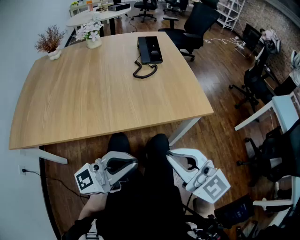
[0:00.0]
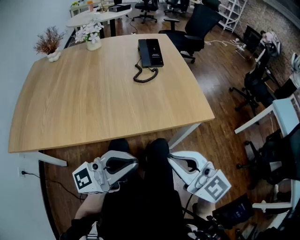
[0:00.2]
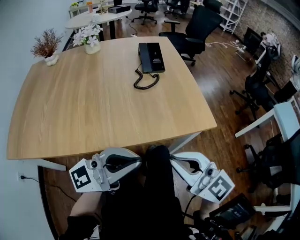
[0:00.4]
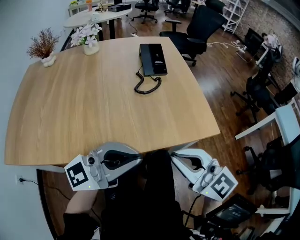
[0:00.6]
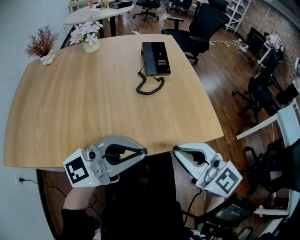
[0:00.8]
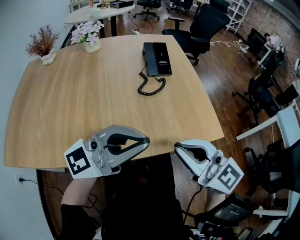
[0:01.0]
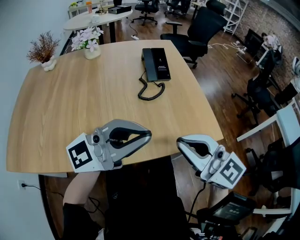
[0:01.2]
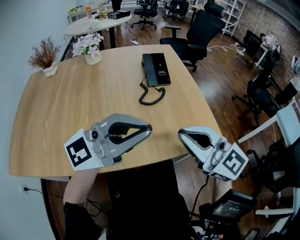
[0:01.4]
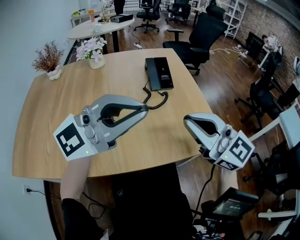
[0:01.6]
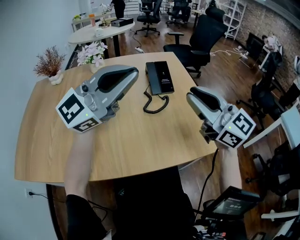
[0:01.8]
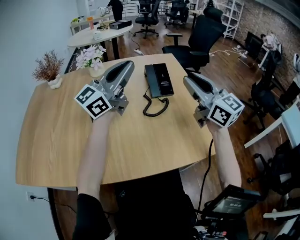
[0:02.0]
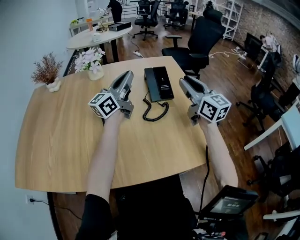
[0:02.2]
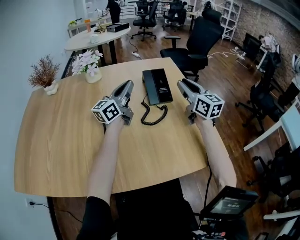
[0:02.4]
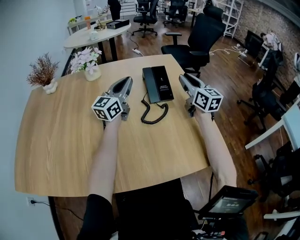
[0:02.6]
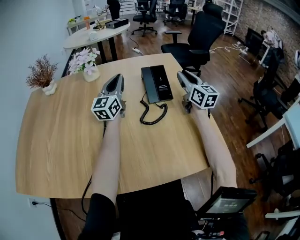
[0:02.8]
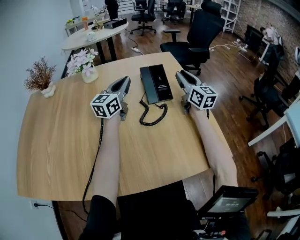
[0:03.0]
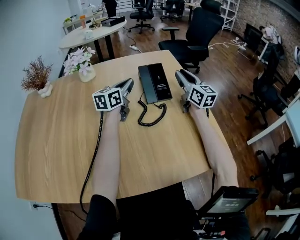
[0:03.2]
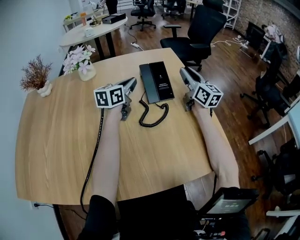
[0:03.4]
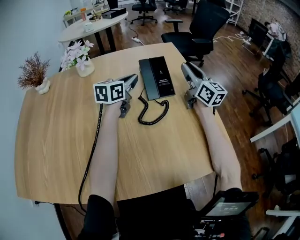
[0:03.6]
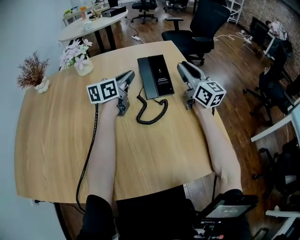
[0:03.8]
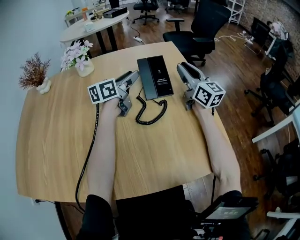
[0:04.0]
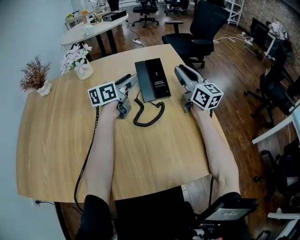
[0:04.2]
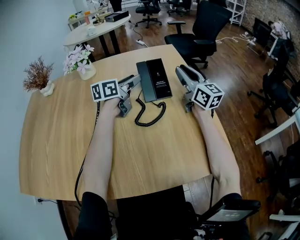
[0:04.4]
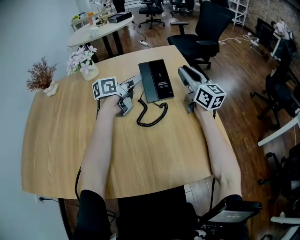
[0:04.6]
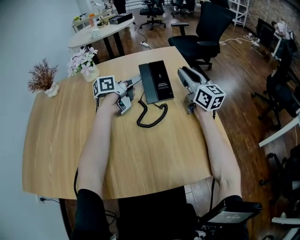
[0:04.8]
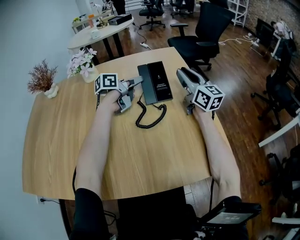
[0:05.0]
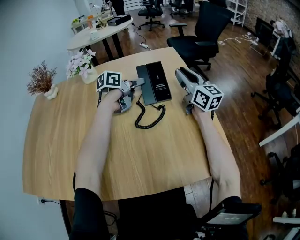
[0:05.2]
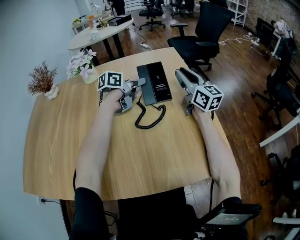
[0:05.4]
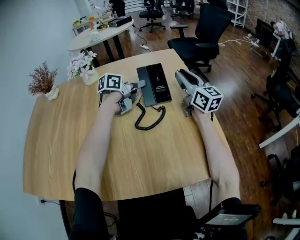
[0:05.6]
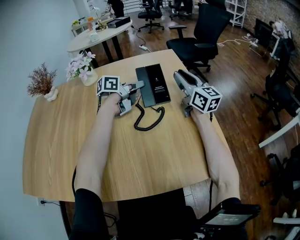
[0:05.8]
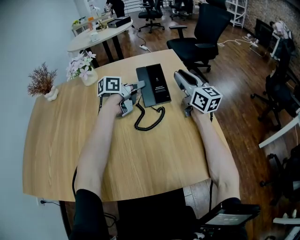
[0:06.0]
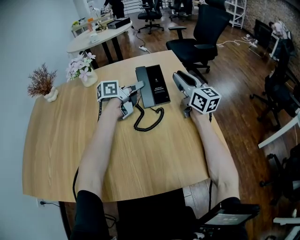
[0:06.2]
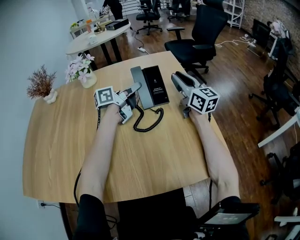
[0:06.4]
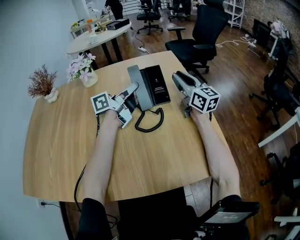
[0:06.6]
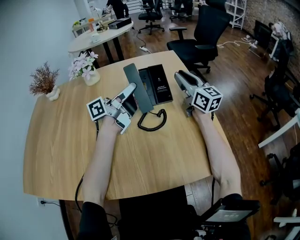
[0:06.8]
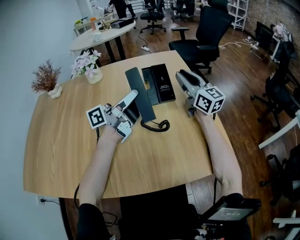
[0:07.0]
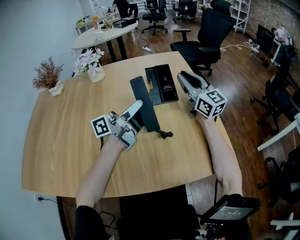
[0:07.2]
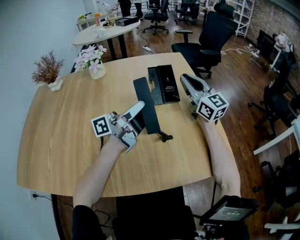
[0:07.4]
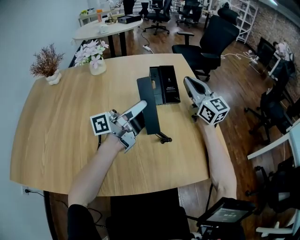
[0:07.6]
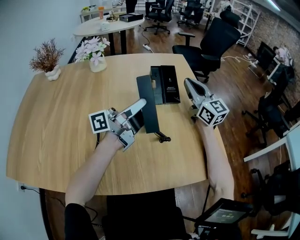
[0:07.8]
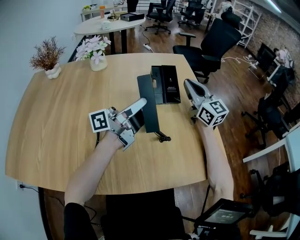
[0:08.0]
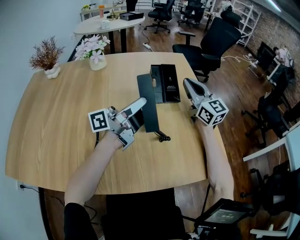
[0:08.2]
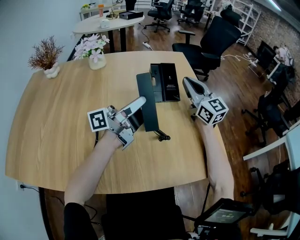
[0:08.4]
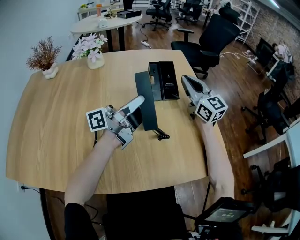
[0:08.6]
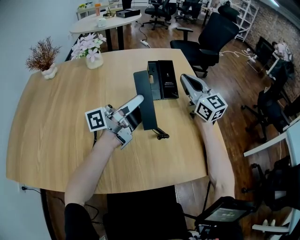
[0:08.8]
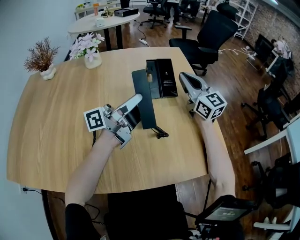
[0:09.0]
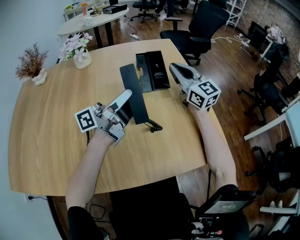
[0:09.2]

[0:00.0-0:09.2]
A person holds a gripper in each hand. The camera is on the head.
0.0 to 1.6 s: The right gripper moves approximately 25 cm. The left gripper moves roughly 25 cm, and rotates some 40 degrees.
1.6 to 3.0 s: The left gripper moves forward and downward, some 40 cm, and changes its angle by approximately 50 degrees. The right gripper heads forward, covering about 35 cm, swivels some 30 degrees, and opens up.
3.0 to 4.6 s: The left gripper goes roughly 5 cm to the right and downward, turns by roughly 40 degrees, and opens.
4.6 to 6.2 s: The left gripper closes up.
6.2 to 7.6 s: The left gripper goes about 20 cm backward, and angles its fingers upward, by about 40 degrees, while the right gripper is displaced backward by roughly 5 cm.
7.6 to 9.2 s: The grippers move only a little.

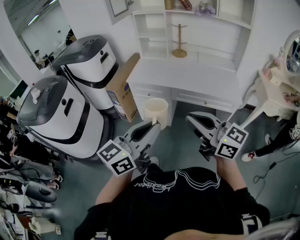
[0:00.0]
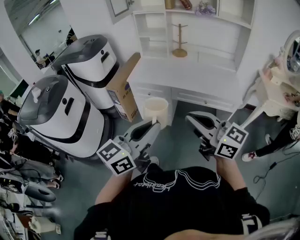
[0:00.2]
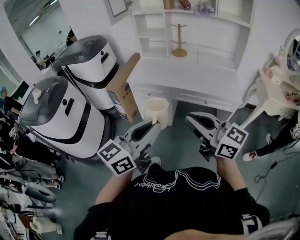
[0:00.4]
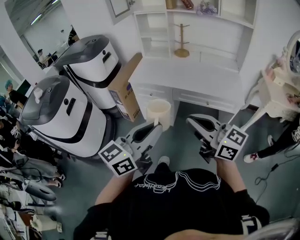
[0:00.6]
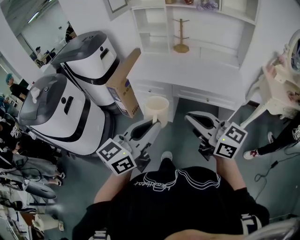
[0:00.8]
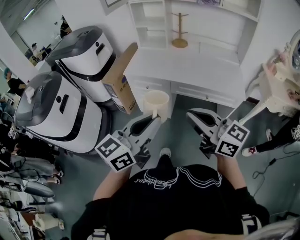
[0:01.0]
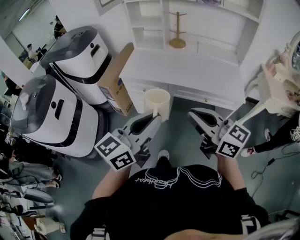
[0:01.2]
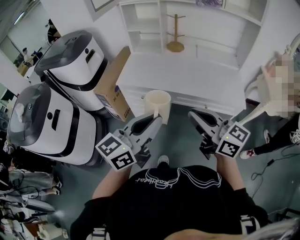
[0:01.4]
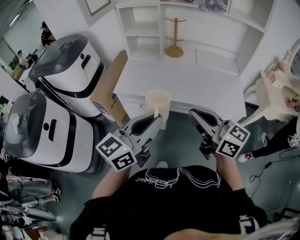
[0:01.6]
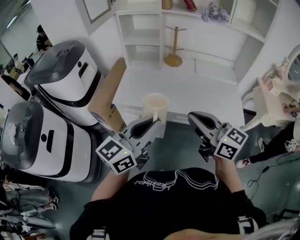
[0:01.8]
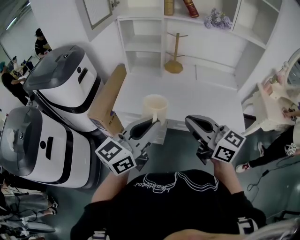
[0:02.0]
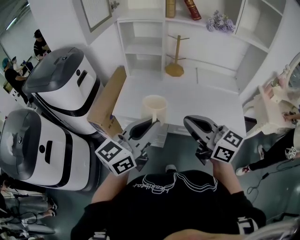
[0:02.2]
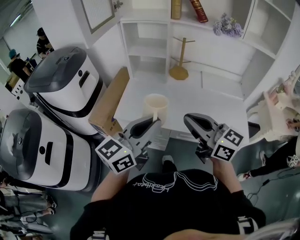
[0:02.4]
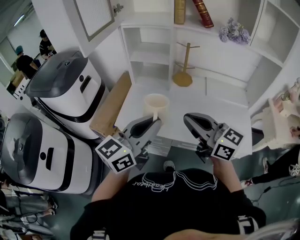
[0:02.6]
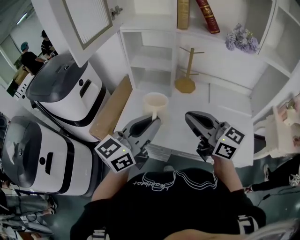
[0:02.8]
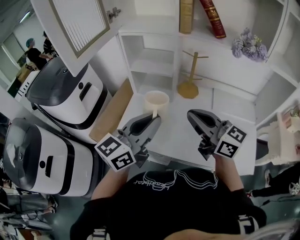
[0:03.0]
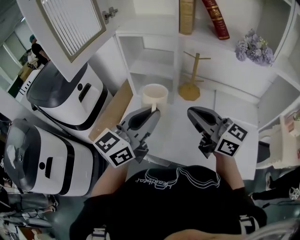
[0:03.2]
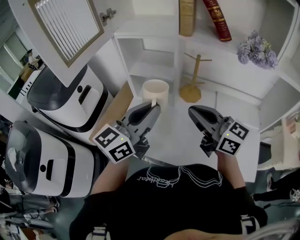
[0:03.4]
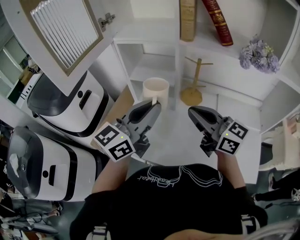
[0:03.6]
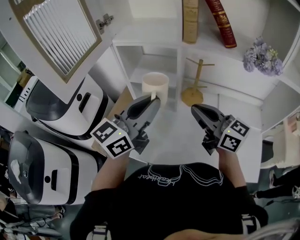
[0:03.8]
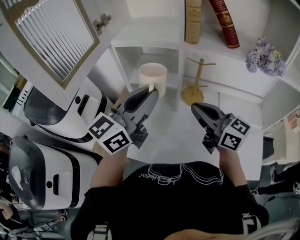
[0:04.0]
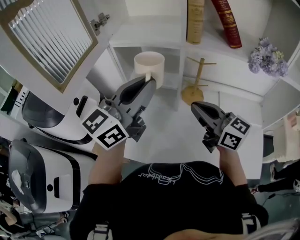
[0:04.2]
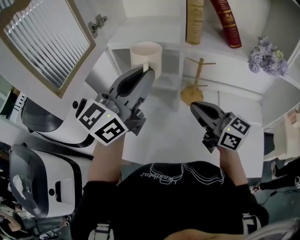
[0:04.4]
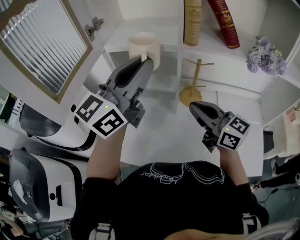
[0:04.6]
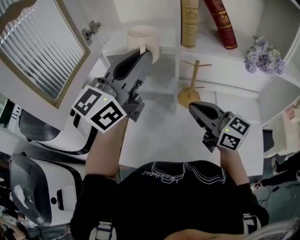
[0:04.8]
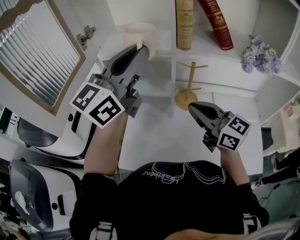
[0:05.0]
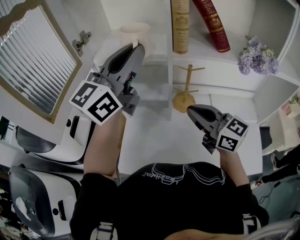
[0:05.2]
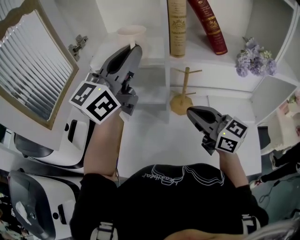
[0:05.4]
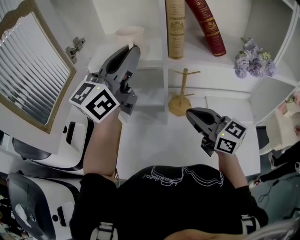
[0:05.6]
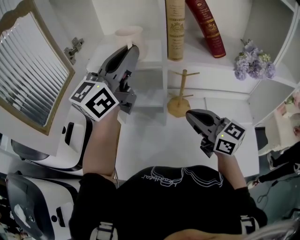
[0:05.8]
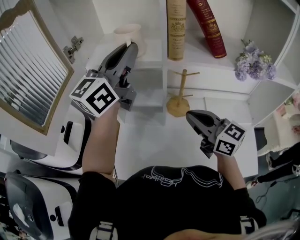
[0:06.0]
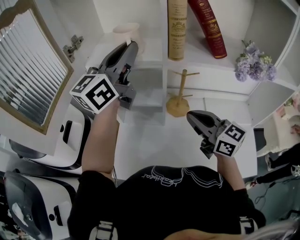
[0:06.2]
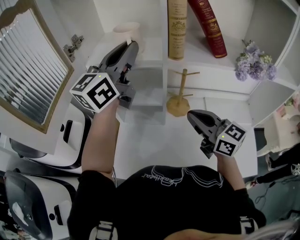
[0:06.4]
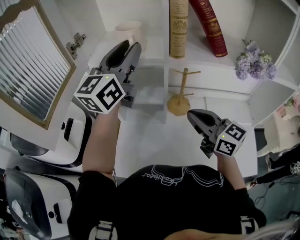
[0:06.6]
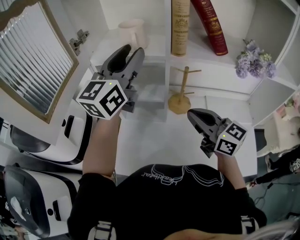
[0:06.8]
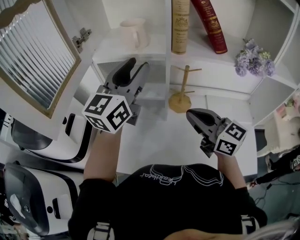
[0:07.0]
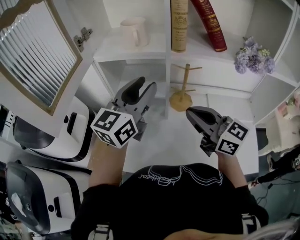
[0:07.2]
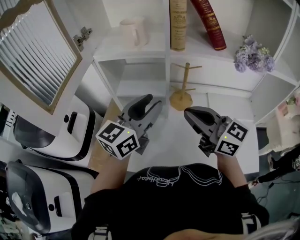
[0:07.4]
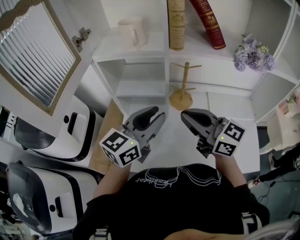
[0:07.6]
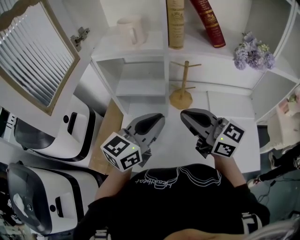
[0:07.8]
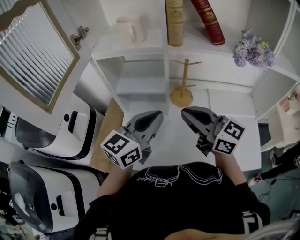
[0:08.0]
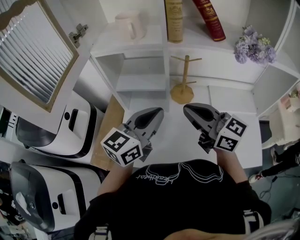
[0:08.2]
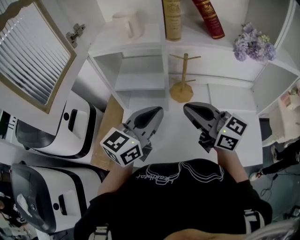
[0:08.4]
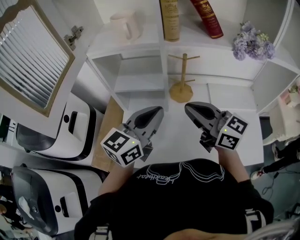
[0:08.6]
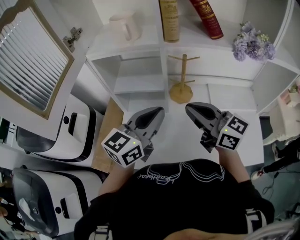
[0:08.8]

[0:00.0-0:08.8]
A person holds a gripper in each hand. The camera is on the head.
0.0 to 1.4 s: The two grippers go some 15 cm forward.
1.4 to 3.0 s: The two grippers go approximately 40 cm forward.
3.0 to 4.4 s: The right gripper shifts some 15 cm forward, while the left gripper travels forward and upward by about 25 cm.
4.4 to 5.8 s: The left gripper travels forward and upward by about 15 cm.
5.8 to 7.4 s: The right gripper ends up about 5 cm from where it was, while the left gripper shifts approximately 20 cm downward and backward, and opens up.
7.4 to 8.8 s: The left gripper changes place by about 5 cm, and closes.

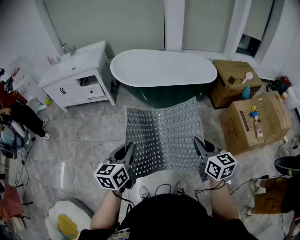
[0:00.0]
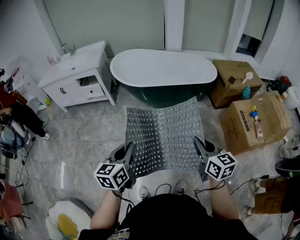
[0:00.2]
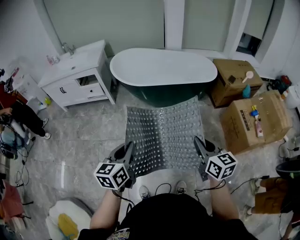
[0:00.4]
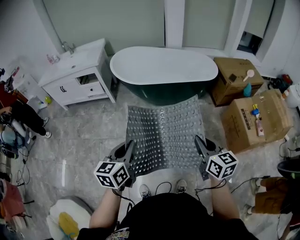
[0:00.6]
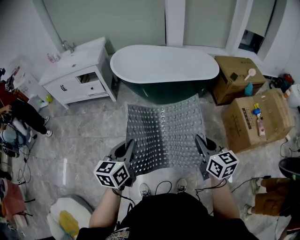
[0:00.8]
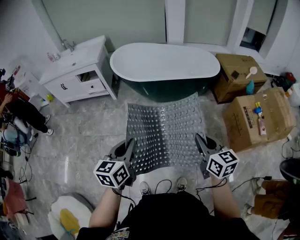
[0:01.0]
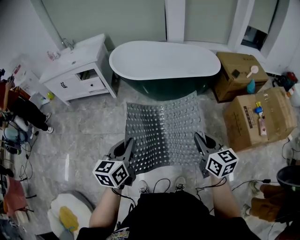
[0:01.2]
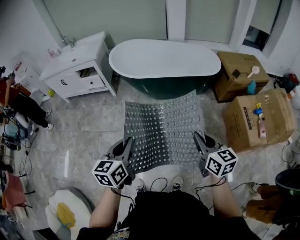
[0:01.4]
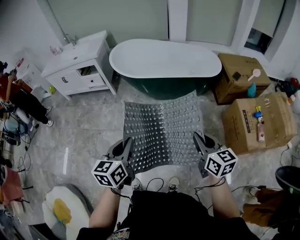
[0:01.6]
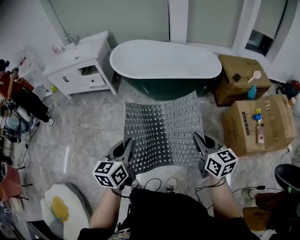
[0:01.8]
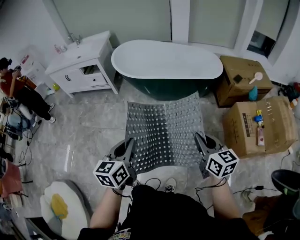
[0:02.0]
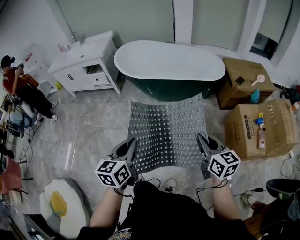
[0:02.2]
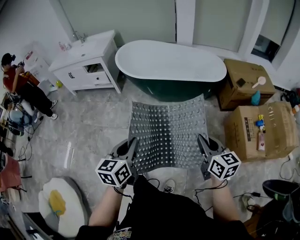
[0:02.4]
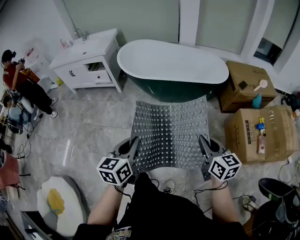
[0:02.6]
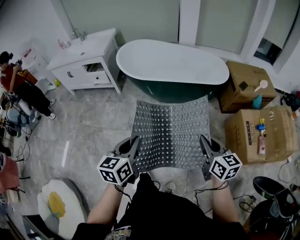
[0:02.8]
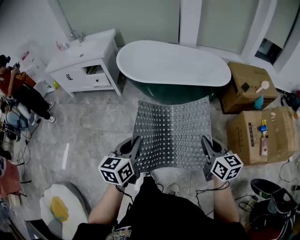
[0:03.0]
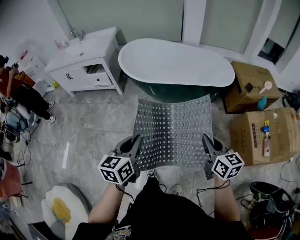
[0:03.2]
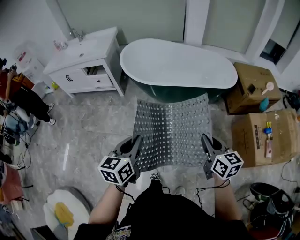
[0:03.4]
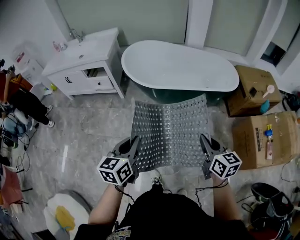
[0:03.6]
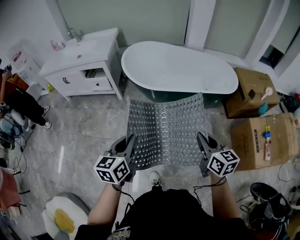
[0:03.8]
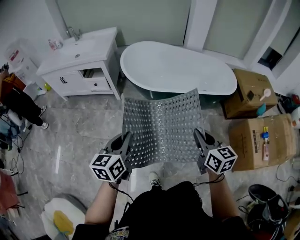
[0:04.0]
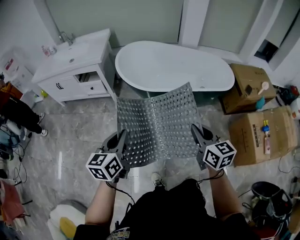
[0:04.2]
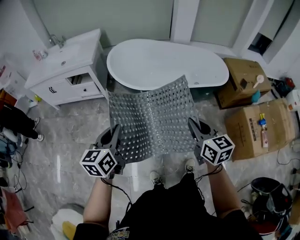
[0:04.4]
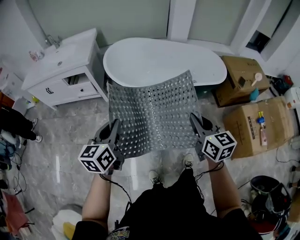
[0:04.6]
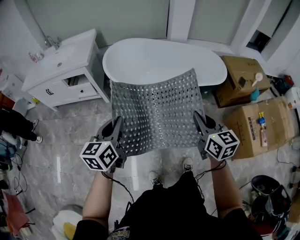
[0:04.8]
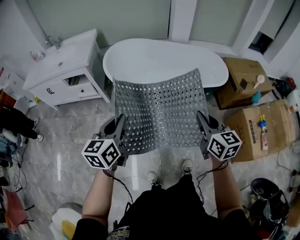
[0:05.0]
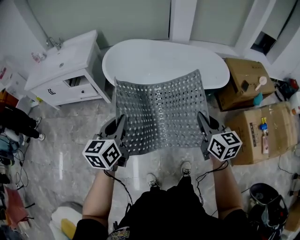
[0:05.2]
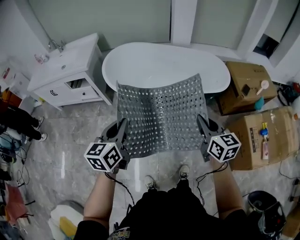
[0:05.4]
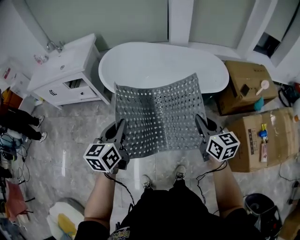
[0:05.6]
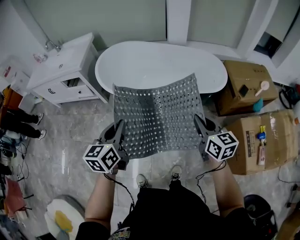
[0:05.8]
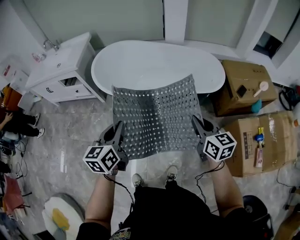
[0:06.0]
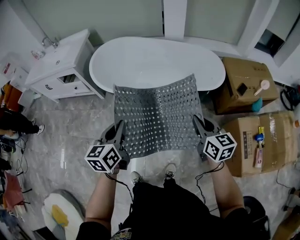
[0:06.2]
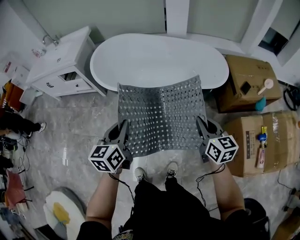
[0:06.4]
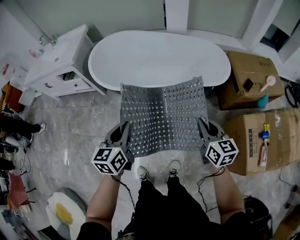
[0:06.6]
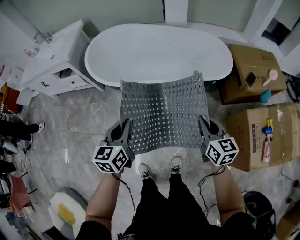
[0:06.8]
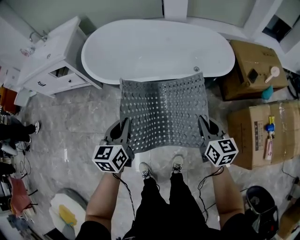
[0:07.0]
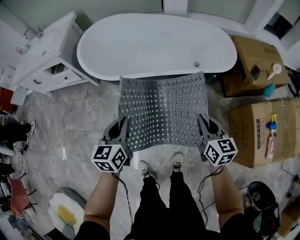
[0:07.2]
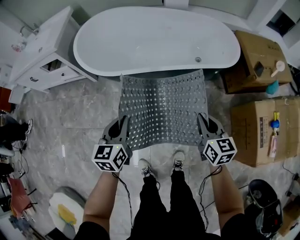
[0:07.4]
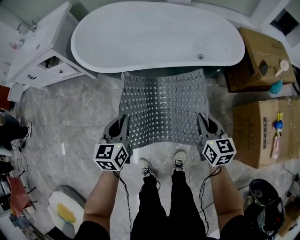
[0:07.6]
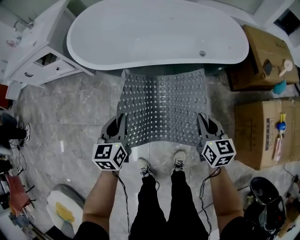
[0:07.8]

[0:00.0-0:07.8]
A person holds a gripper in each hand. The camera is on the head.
0.0 to 1.6 s: The grippers both shift to the right by about 10 cm.
1.6 to 3.2 s: The grippers both shift forward by roughly 10 cm.
3.2 to 4.6 s: Both grippers move forward and to the left, roughly 25 cm.
4.6 to 6.2 s: The grippers both shift to the right by some 30 cm.
6.2 to 7.8 s: The grippers both shift downward by about 25 cm.
